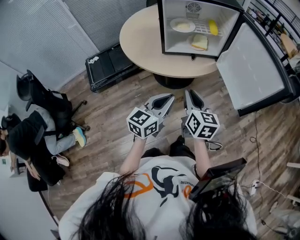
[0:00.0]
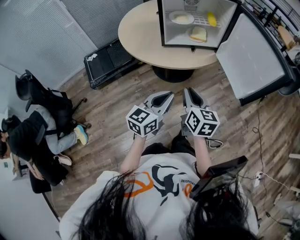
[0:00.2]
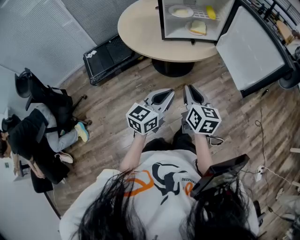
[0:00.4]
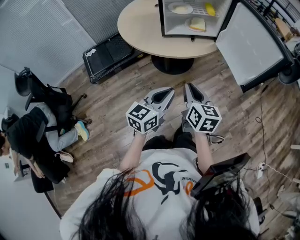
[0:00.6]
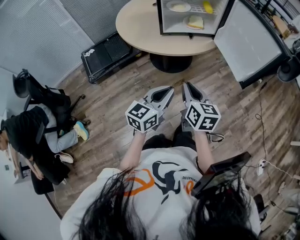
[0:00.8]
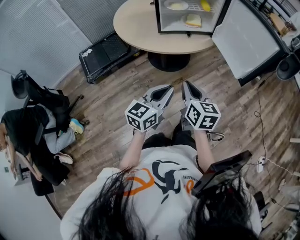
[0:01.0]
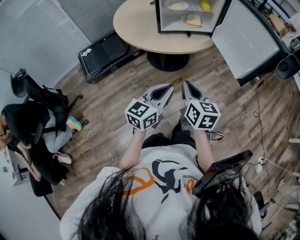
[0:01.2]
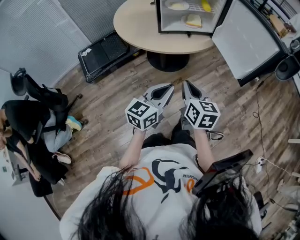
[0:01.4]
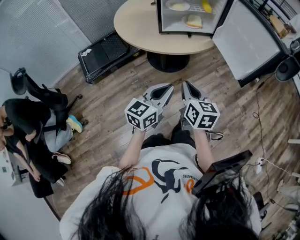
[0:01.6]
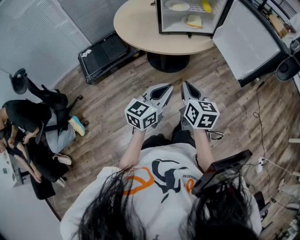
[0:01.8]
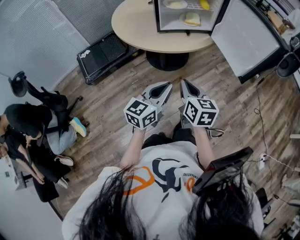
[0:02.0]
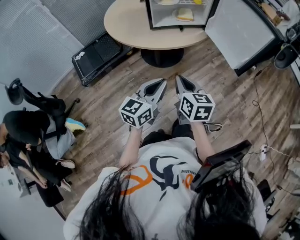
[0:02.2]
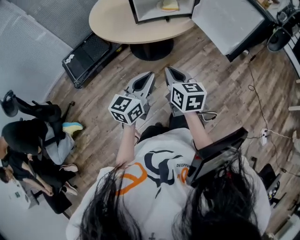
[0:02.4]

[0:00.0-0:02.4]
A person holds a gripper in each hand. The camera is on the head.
0:00.0 to 0:01.2: The grippers both shift backward by about 10 cm.
0:01.2 to 0:02.4: The grippers stay close to where they were, moving slightly.

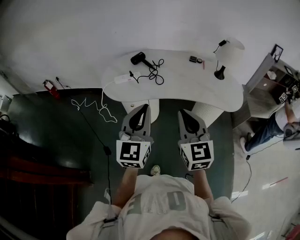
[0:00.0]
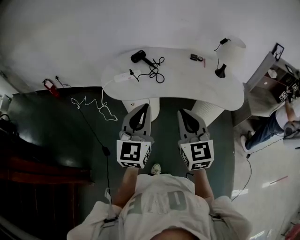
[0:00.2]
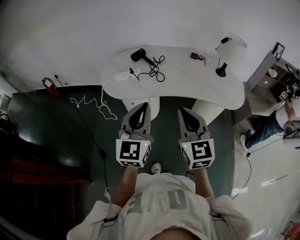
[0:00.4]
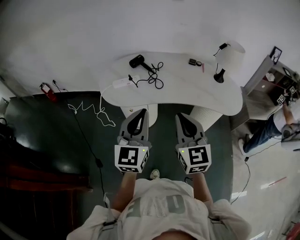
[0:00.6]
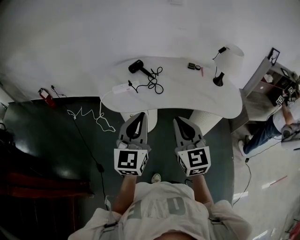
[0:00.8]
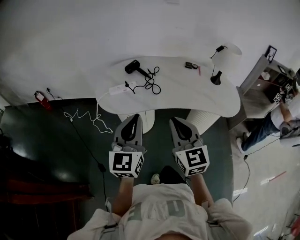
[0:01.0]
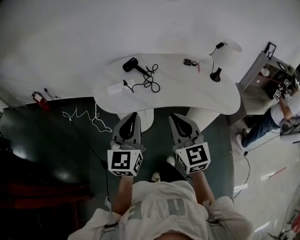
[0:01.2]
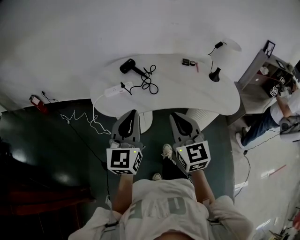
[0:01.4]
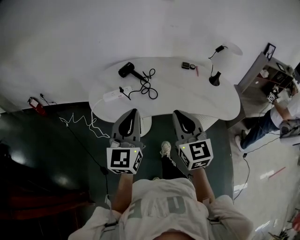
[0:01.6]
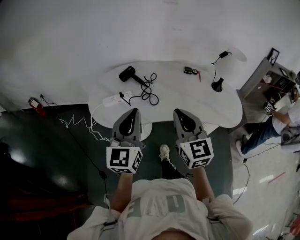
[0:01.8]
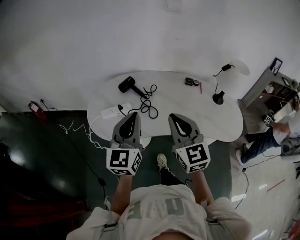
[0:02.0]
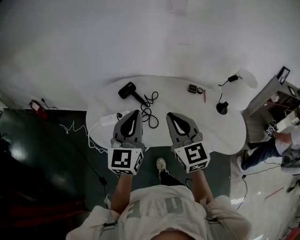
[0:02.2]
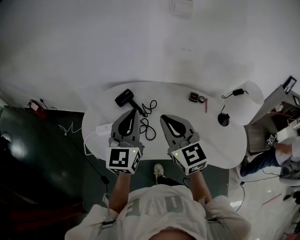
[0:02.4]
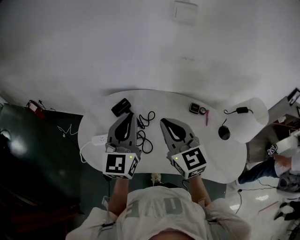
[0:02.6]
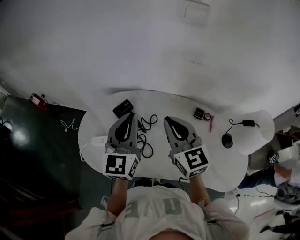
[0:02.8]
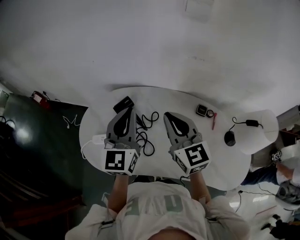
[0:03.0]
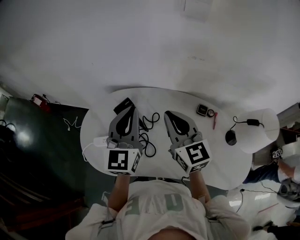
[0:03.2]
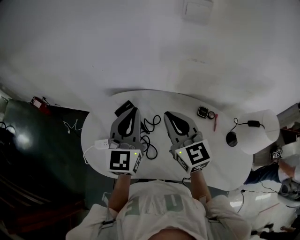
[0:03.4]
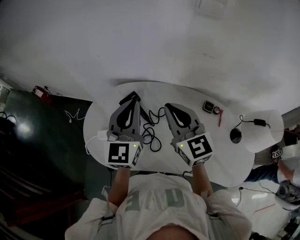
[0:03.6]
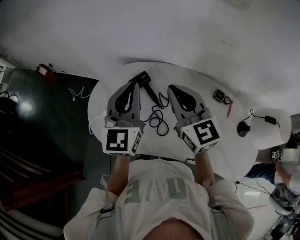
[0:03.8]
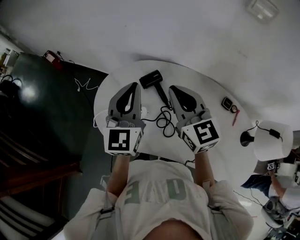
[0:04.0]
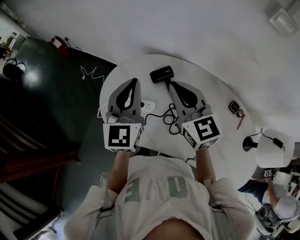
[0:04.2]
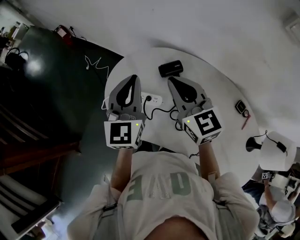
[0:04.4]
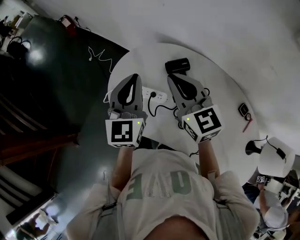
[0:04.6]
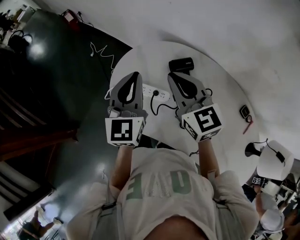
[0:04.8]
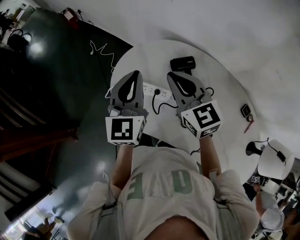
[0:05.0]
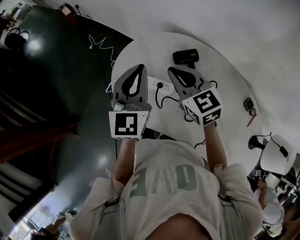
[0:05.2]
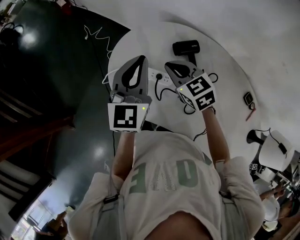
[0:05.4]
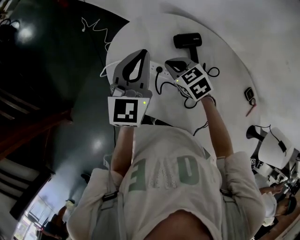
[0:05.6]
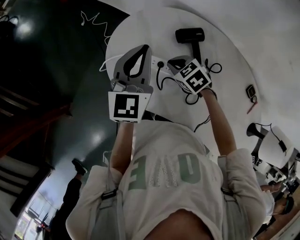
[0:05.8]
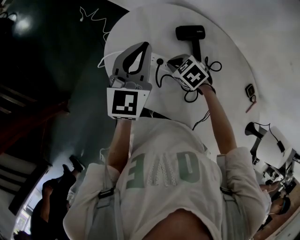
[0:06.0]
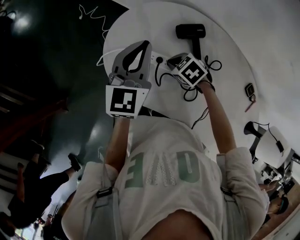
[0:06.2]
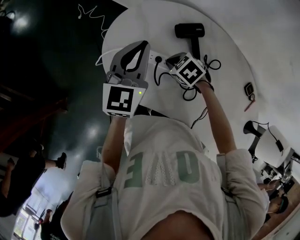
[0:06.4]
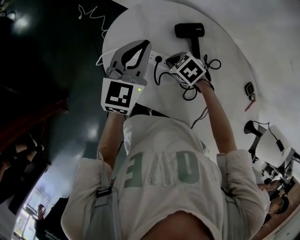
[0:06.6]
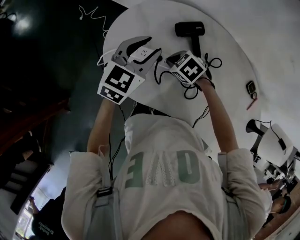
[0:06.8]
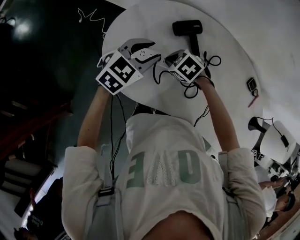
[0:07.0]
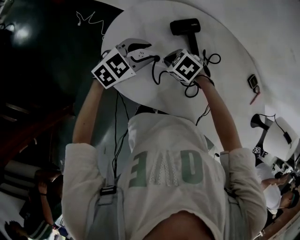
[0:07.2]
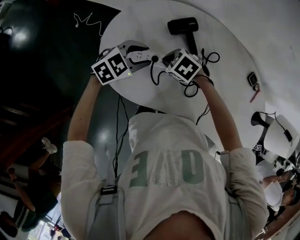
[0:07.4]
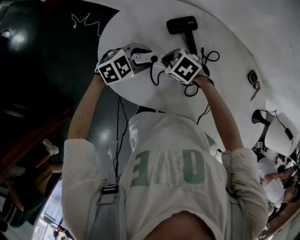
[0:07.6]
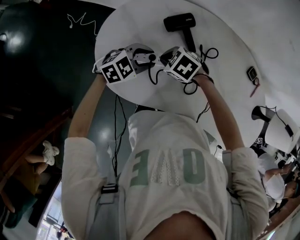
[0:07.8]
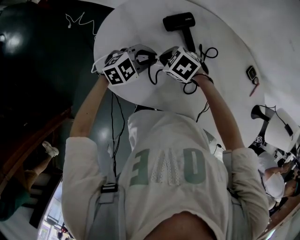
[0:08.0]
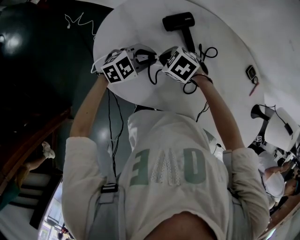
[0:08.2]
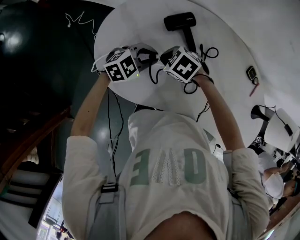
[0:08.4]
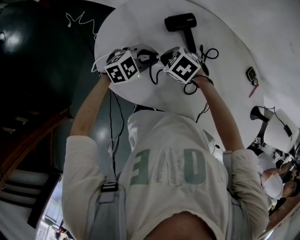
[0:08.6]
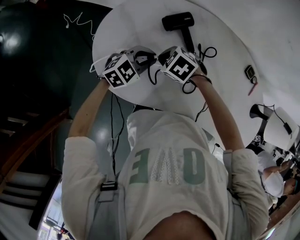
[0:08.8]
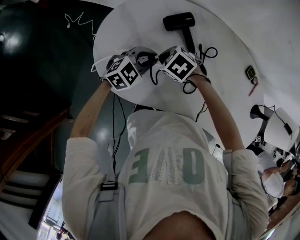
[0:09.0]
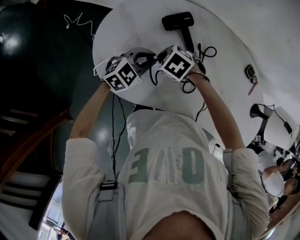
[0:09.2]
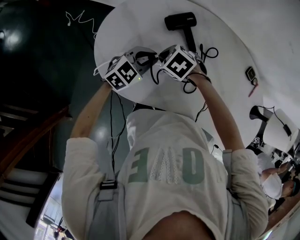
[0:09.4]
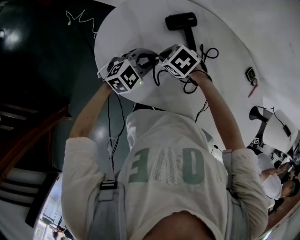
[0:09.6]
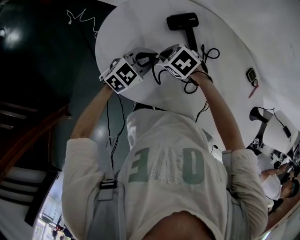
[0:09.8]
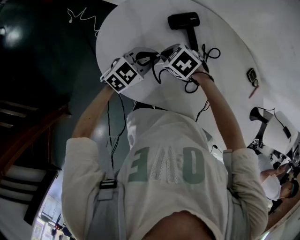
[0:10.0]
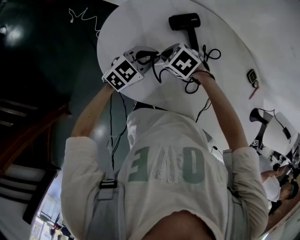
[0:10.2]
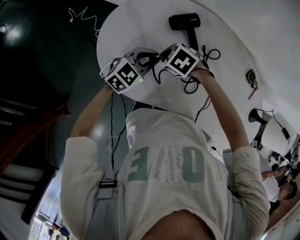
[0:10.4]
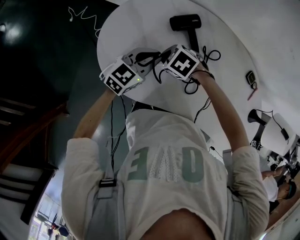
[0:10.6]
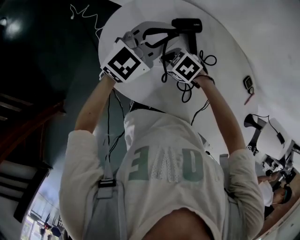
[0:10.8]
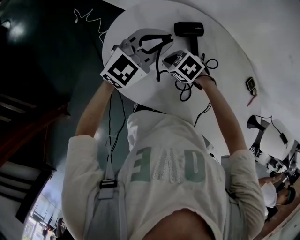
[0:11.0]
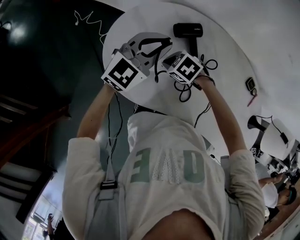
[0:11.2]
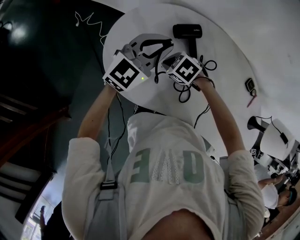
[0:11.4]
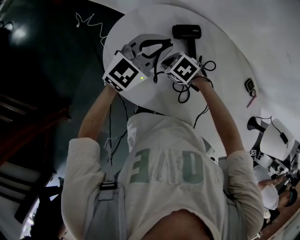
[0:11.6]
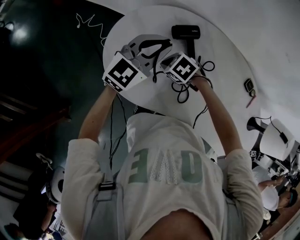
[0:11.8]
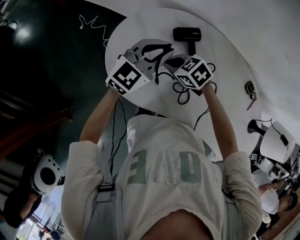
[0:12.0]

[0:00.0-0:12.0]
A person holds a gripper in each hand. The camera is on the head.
0:00.0 to 0:01.6: The two grippers go approximately 10 cm forward.
0:01.6 to 0:03.0: The two grippers go some 40 cm forward. The right gripper swivels approximately 20 degrees.
0:03.0 to 0:04.4: The grippers both shift to the left by roughly 20 cm. The right gripper turns by roughly 30 degrees, while the left gripper changes its angle by roughly 20 degrees.
0:04.4 to 0:06.0: The left gripper travels downward by some 10 cm; the right gripper moves downward, some 30 cm, and tips its fingers downward by approximately 50 degrees.
0:06.0 to 0:07.6: The left gripper heads downward, covering roughly 15 cm, tips its fingers downward by about 40 degrees, and opens its fingers.
0:07.6 to 0:09.0: The left gripper closes its fingers.
0:09.0 to 0:10.4: The grippers make only small movements.
0:10.4 to 0:12.0: The right gripper changes its angle by about 20 degrees. Meanwhile the left gripper heads upward, covering roughly 15 cm, and turns by some 20 degrees.

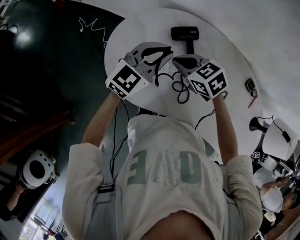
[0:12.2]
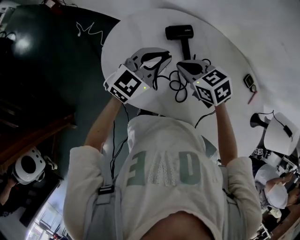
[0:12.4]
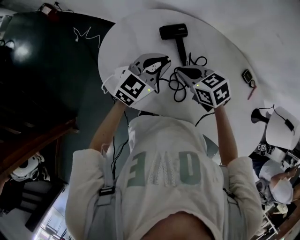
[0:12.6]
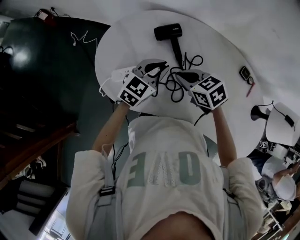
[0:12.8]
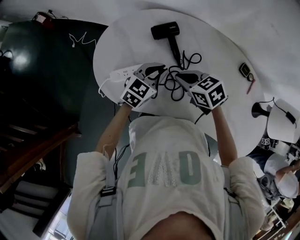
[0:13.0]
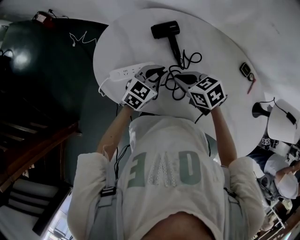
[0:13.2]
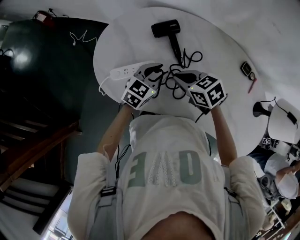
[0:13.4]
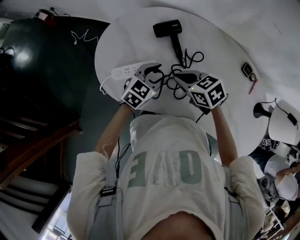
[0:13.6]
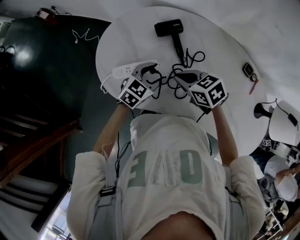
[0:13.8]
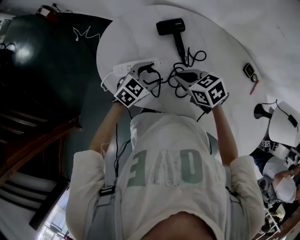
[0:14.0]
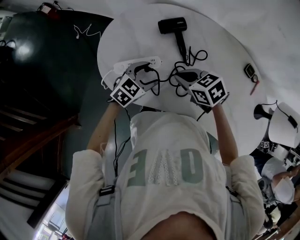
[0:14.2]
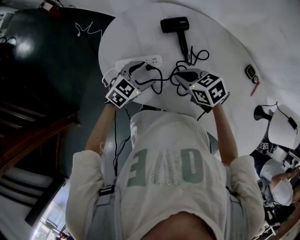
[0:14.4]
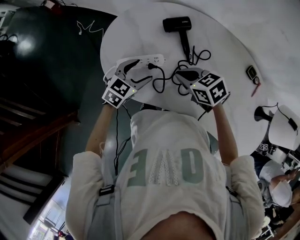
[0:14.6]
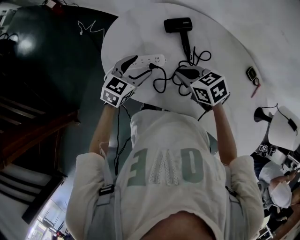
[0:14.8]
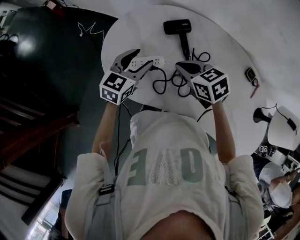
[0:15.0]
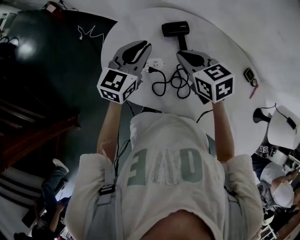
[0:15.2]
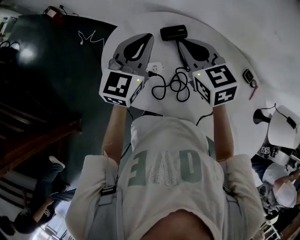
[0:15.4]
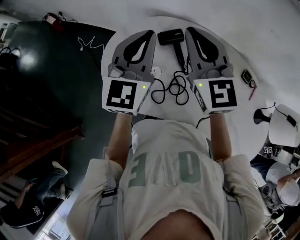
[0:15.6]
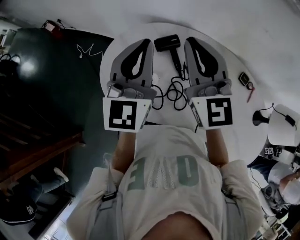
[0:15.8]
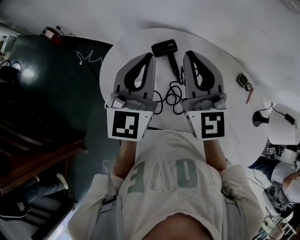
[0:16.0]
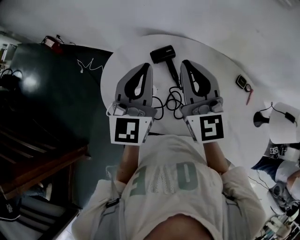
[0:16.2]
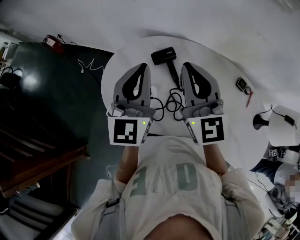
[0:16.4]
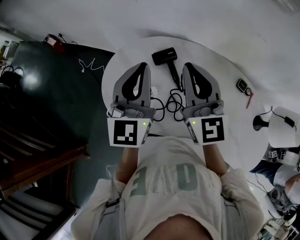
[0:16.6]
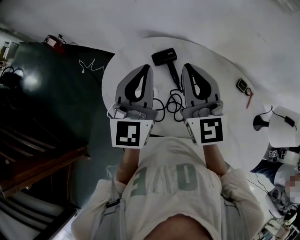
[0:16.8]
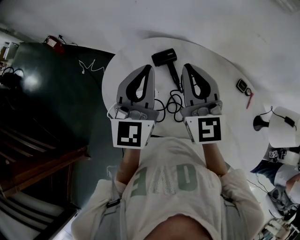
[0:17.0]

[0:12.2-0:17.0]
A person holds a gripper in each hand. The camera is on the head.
0:12.2 to 0:13.8: The left gripper is displaced downward by some 15 cm, changes its angle by some 30 degrees, and opens up. The right gripper moves backward and to the right, about 10 cm.
0:13.8 to 0:15.4: The right gripper goes about 20 cm upward and forward, and changes its angle by roughly 40 degrees; the left gripper moves upward, some 25 cm, changes its angle by approximately 40 degrees, and closes.
0:15.4 to 0:17.0: Both grippers travel together upward, approximately 10 cm. The right gripper swivels approximately 30 degrees.

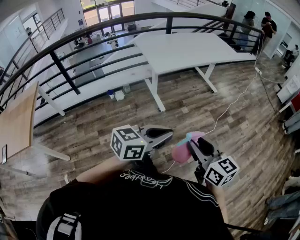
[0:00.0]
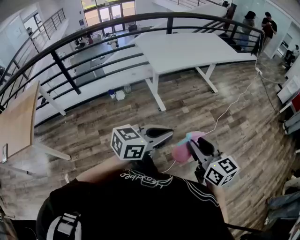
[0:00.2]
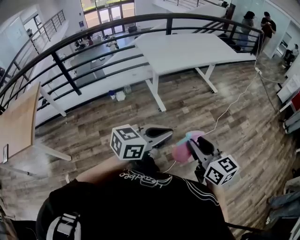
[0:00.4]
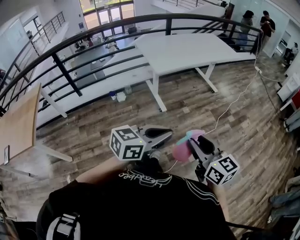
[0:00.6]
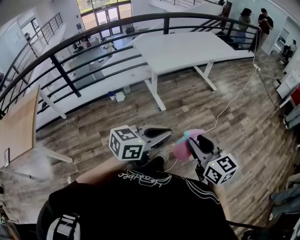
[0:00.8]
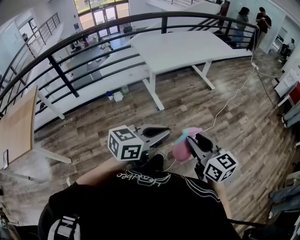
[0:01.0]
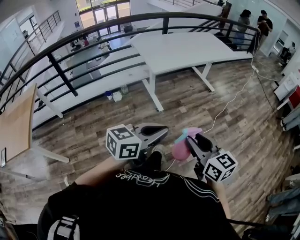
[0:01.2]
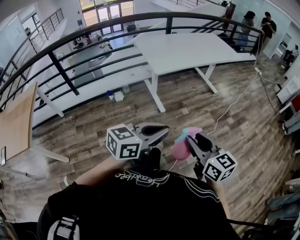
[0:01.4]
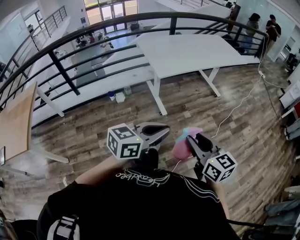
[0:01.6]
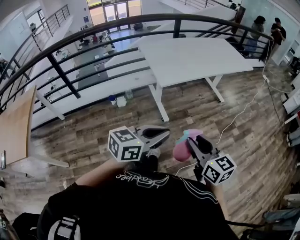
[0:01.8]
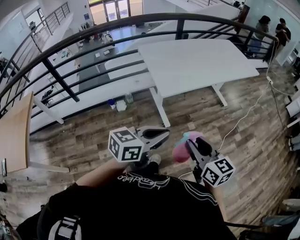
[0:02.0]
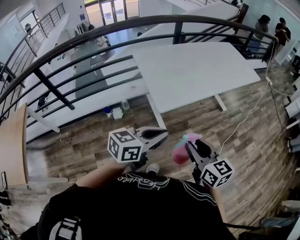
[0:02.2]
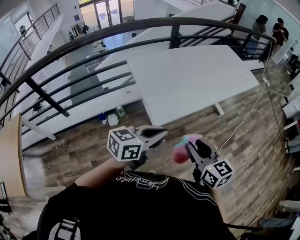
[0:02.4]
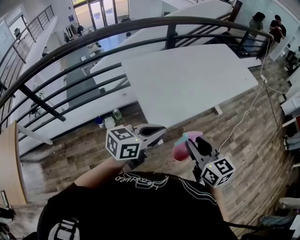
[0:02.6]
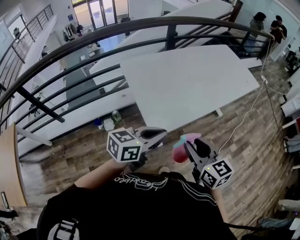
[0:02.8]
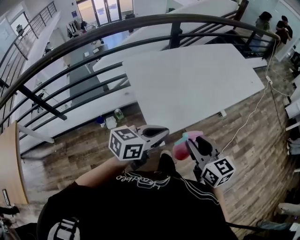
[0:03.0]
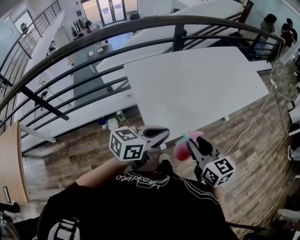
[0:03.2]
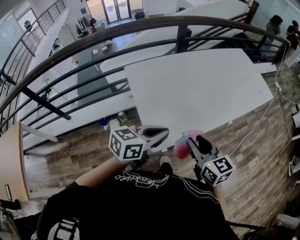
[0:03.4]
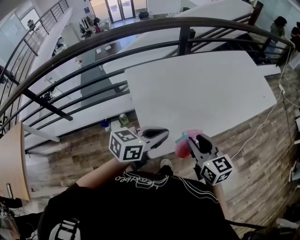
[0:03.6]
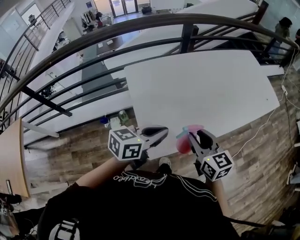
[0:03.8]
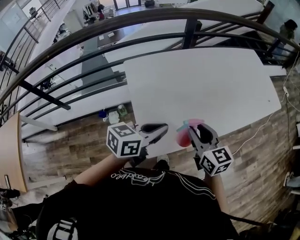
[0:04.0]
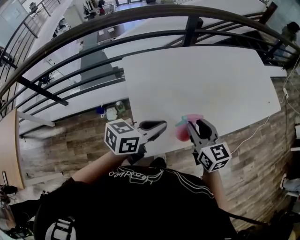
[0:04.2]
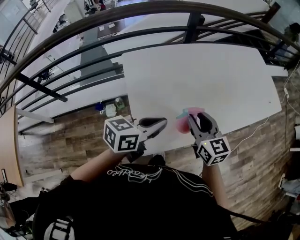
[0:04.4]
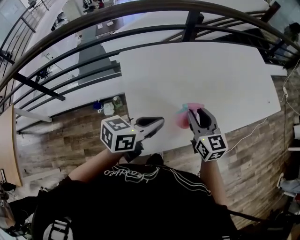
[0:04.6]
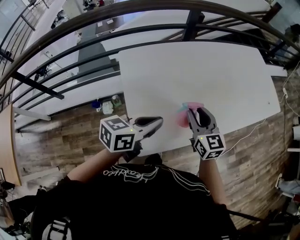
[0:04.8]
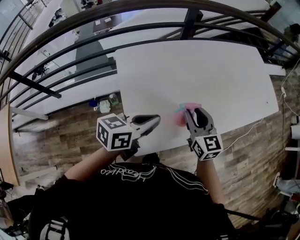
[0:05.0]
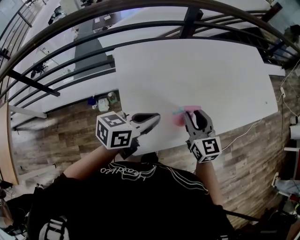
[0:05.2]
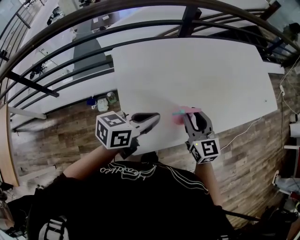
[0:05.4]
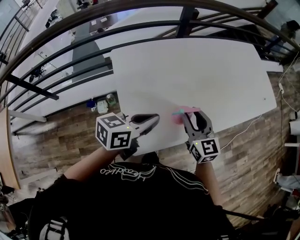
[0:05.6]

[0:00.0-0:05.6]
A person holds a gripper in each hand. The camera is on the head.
0:00.0 to 0:01.4: The grippers make only small movements.
0:01.4 to 0:02.8: The two grippers travel together, forward, roughly 60 cm.
0:02.8 to 0:04.2: Both grippers travel together forward, about 30 cm.
0:04.2 to 0:05.6: The left gripper changes place by approximately 5 cm; the right gripper goes roughly 5 cm forward.
